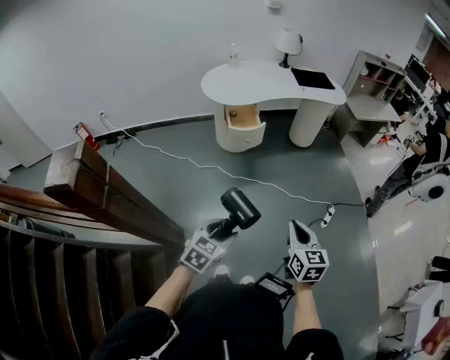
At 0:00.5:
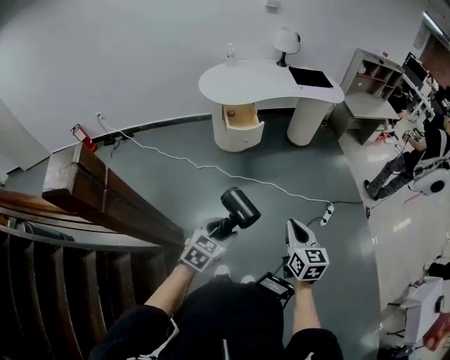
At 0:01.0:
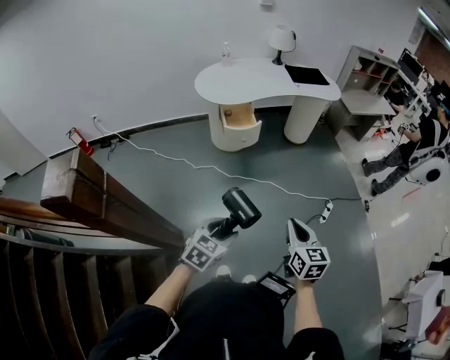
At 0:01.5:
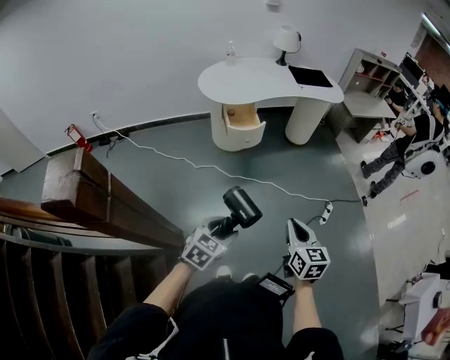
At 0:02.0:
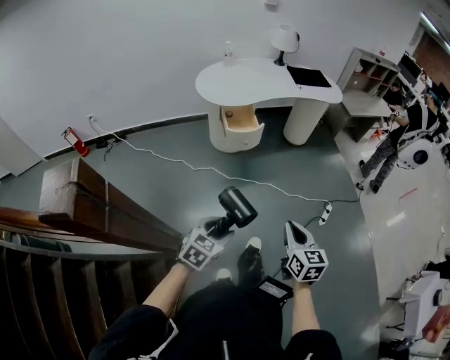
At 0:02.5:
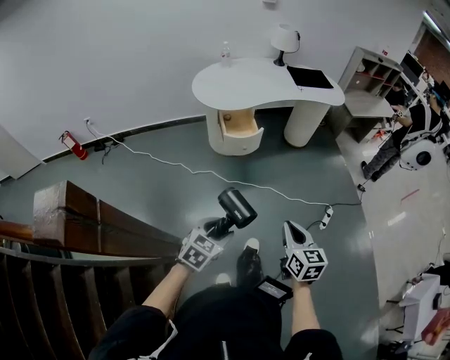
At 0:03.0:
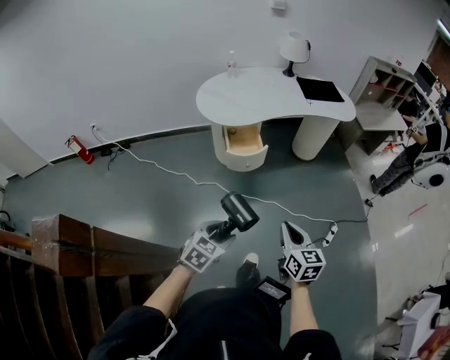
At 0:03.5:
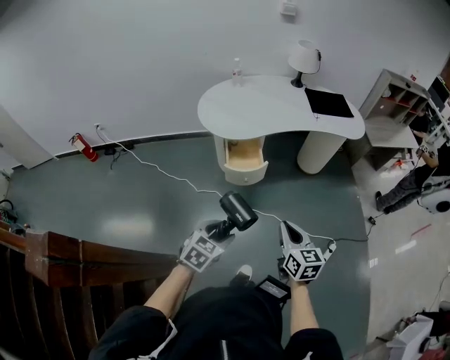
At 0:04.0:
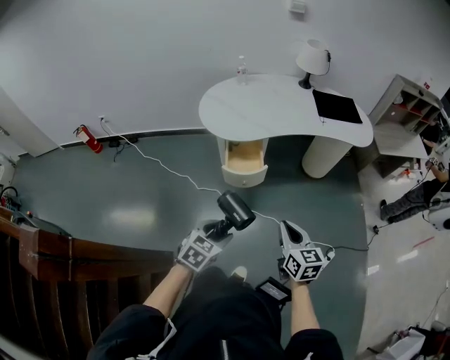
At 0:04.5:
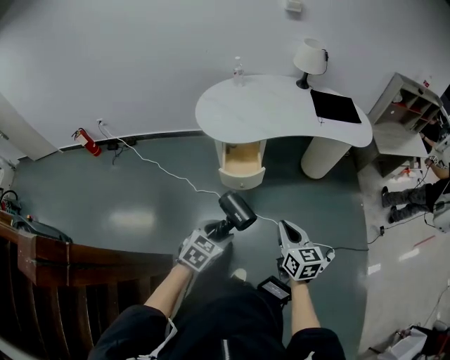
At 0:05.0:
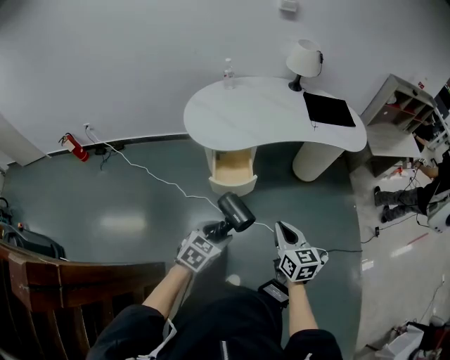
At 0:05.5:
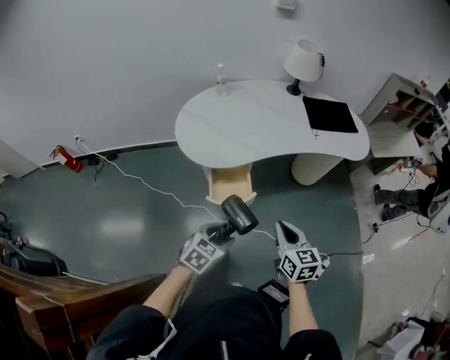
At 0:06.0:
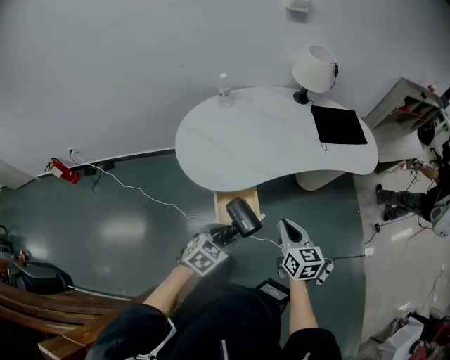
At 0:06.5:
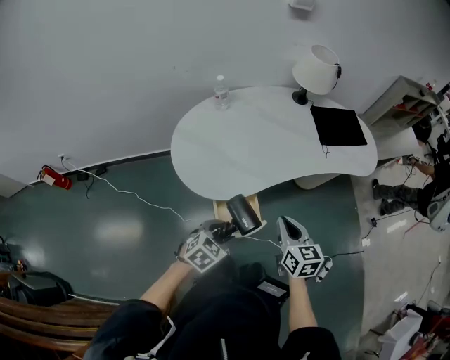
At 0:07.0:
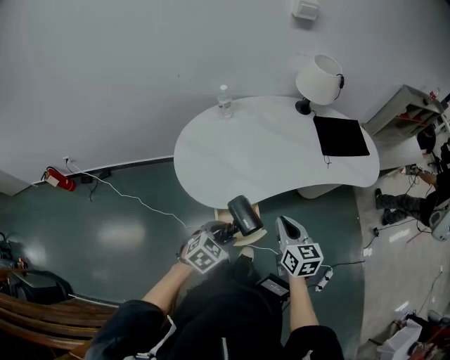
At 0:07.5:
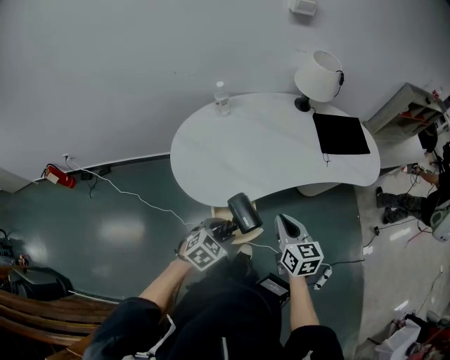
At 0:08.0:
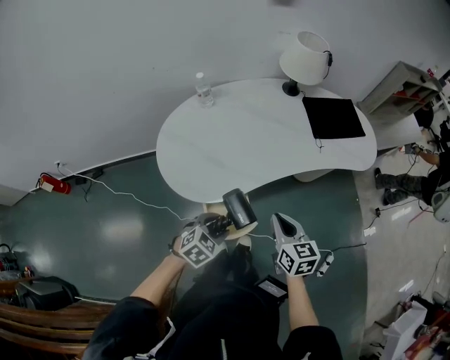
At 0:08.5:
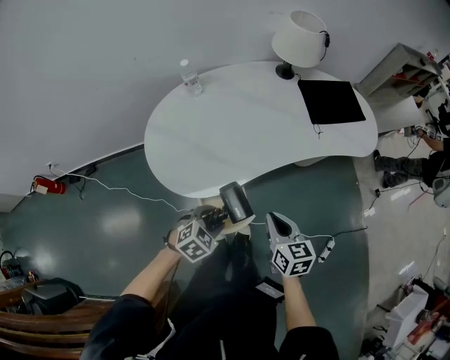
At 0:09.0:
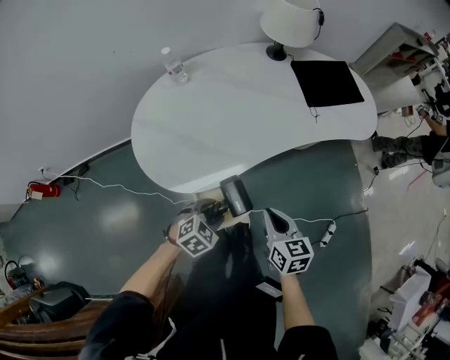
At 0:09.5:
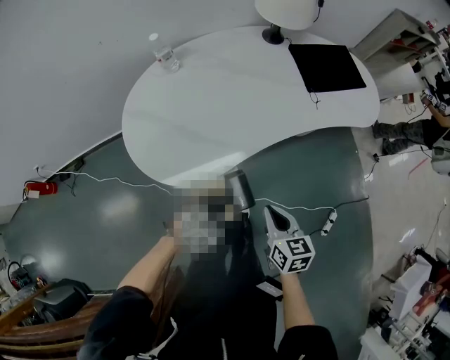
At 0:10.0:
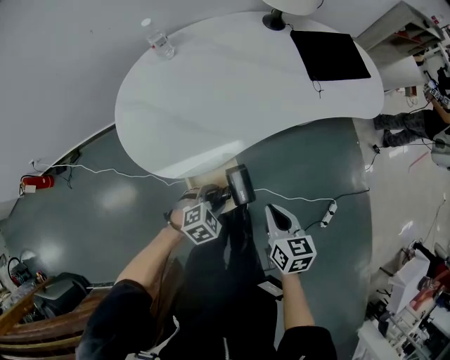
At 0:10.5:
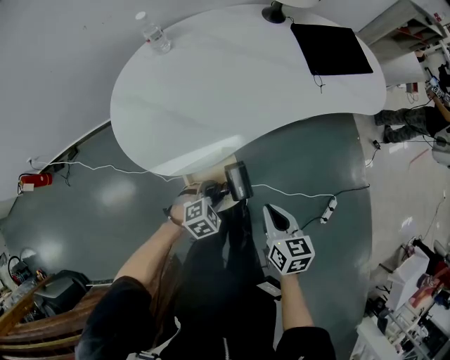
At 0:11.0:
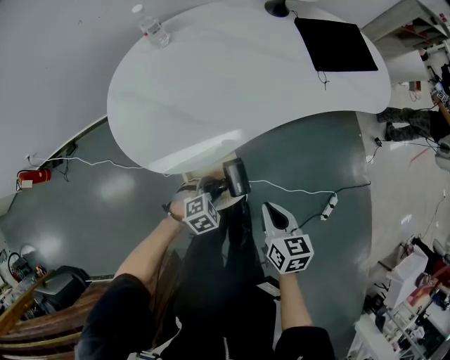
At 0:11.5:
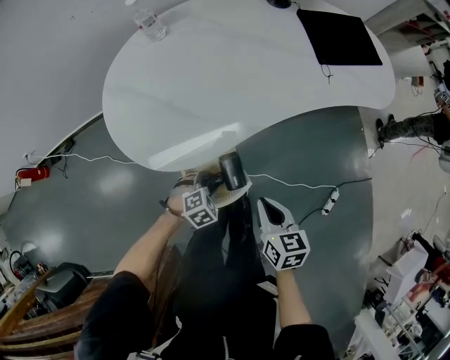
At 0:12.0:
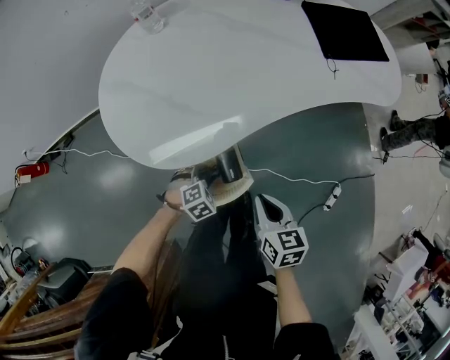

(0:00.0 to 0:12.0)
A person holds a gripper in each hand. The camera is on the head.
0:00.0 - 0:02.0: Both grippers move to the left, about 5 cm.
0:02.0 - 0:04.0: The two grippers go some 30 cm forward.
0:04.0 - 0:06.0: The two grippers go approximately 30 cm forward.
0:06.0 - 0:08.0: Both grippers travel together forward, roughly 10 cm.
0:08.0 - 0:10.0: The two grippers go about 10 cm downward.
0:10.0 - 0:12.0: The left gripper heads downward, covering some 10 cm; the right gripper travels downward by some 5 cm.

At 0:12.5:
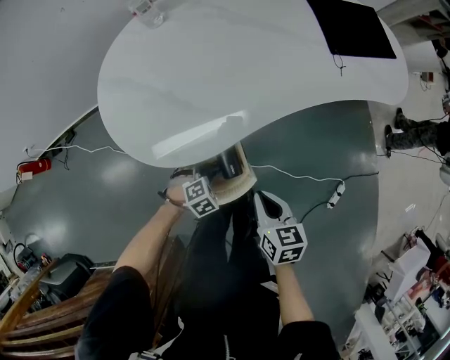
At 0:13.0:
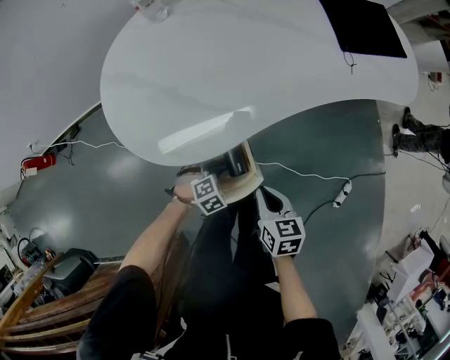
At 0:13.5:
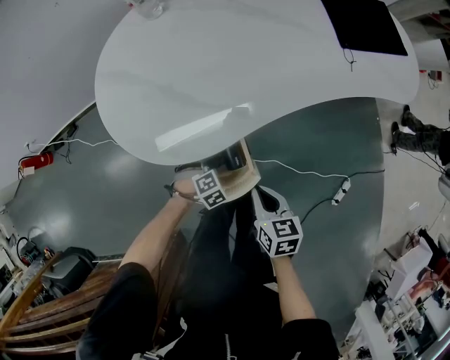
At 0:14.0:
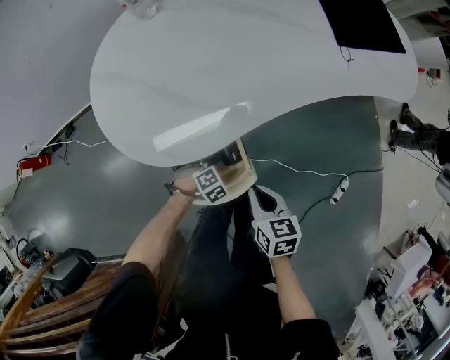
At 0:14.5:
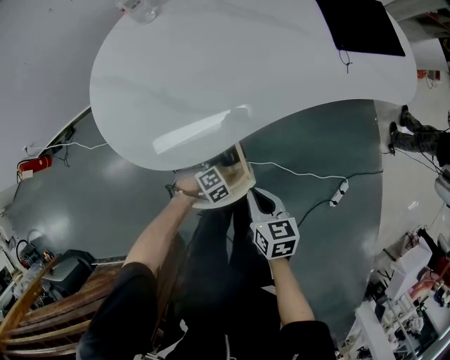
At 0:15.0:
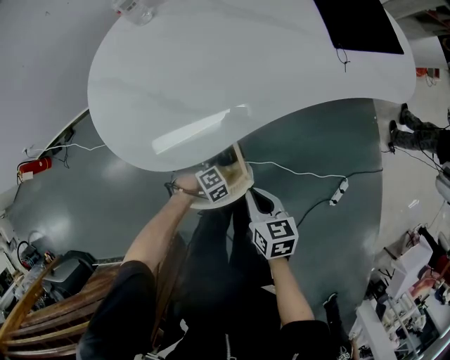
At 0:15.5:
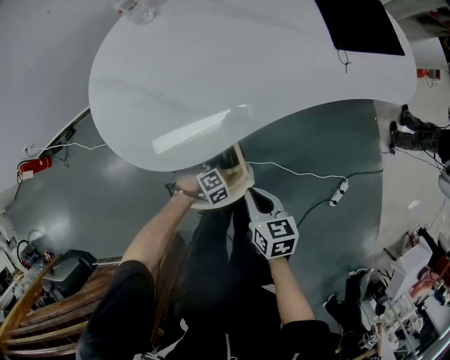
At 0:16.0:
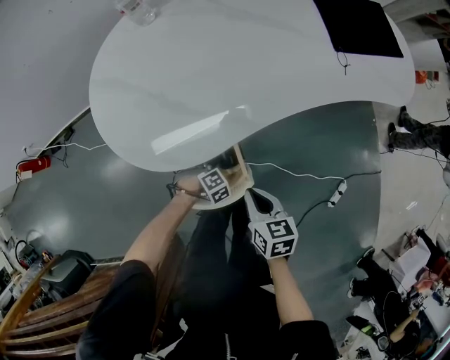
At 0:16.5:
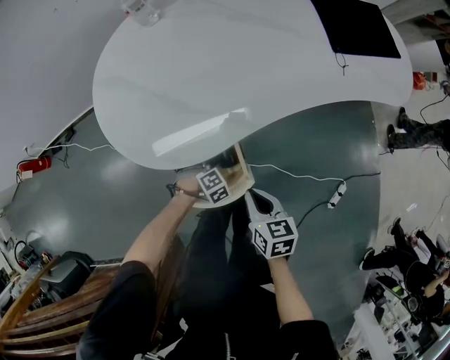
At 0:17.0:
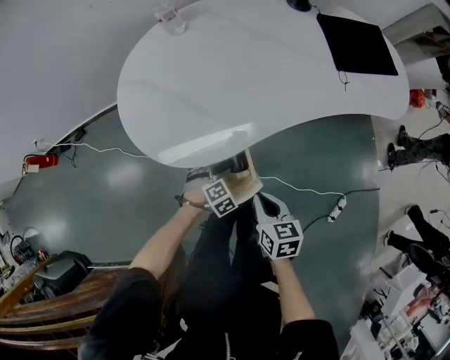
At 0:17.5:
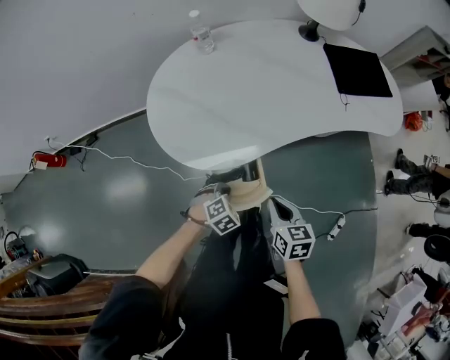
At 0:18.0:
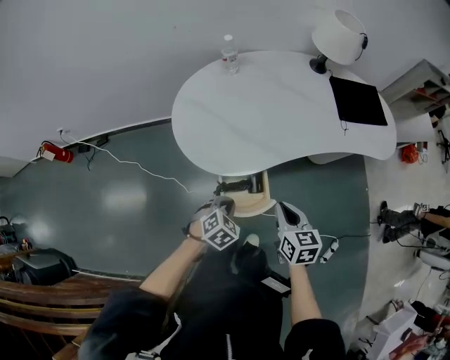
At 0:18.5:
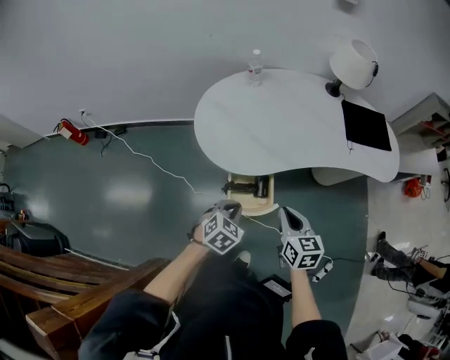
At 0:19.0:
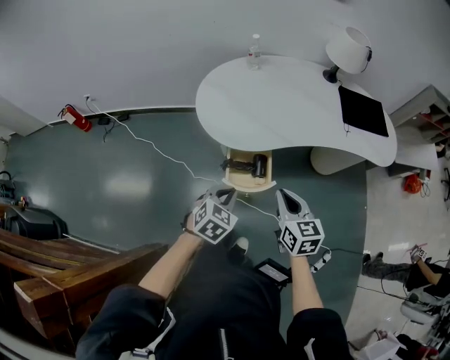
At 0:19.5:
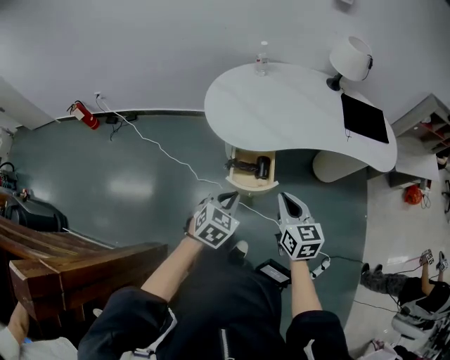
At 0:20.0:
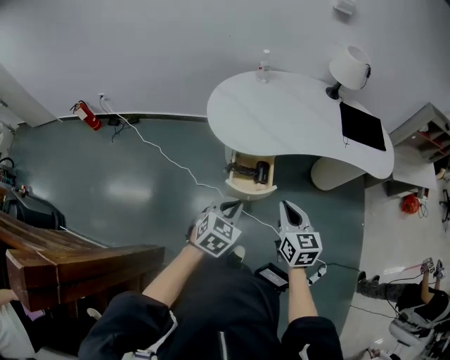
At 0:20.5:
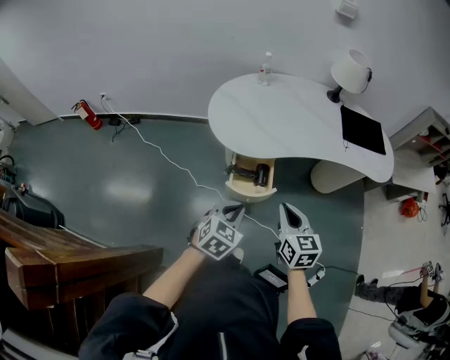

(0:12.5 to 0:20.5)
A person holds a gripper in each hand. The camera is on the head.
0:12.5 - 0:14.5: The left gripper goes approximately 5 cm downward.
0:14.5 - 0:16.5: The grippers stay close to where they were, moving slightly.
0:16.5 - 0:18.5: The right gripper is displaced upward by approximately 20 cm, and changes its angle by about 30 degrees, while the left gripper travels upward by some 35 cm, tips its fingers upward by about 30 degrees, and closes.
0:18.5 - 0:20.5: The right gripper heads backward, covering about 10 cm, while the left gripper travels backward and upward by some 15 cm.

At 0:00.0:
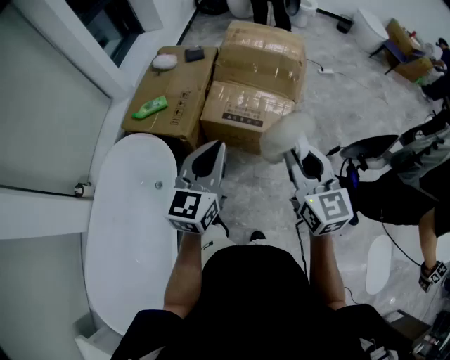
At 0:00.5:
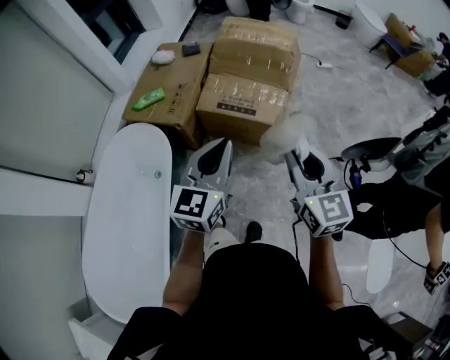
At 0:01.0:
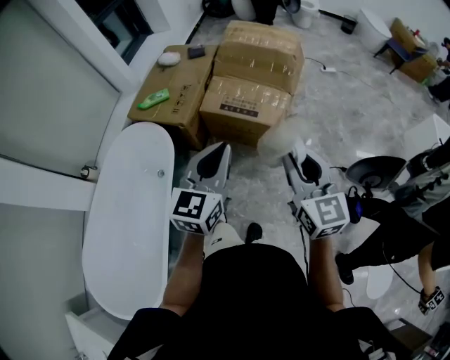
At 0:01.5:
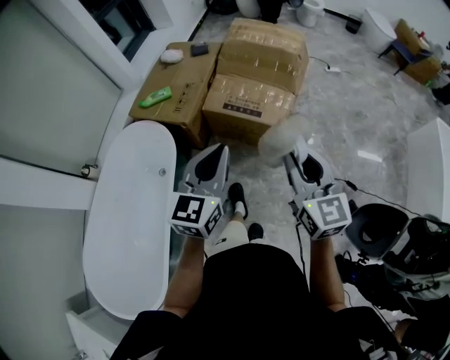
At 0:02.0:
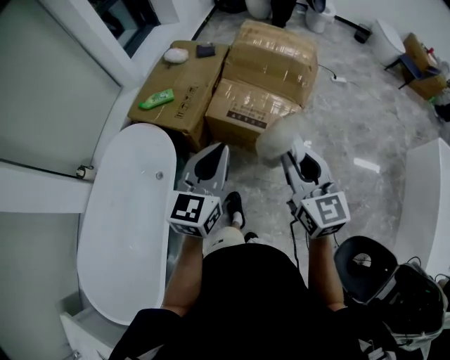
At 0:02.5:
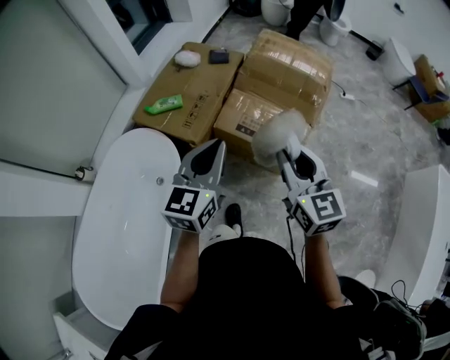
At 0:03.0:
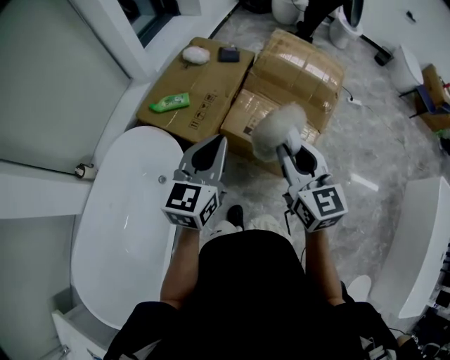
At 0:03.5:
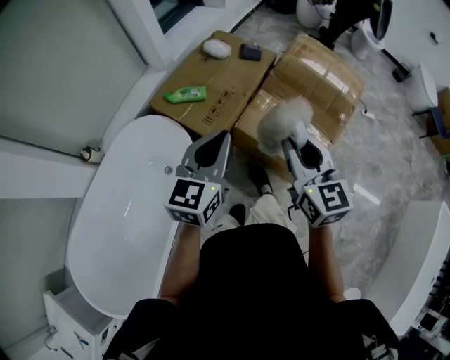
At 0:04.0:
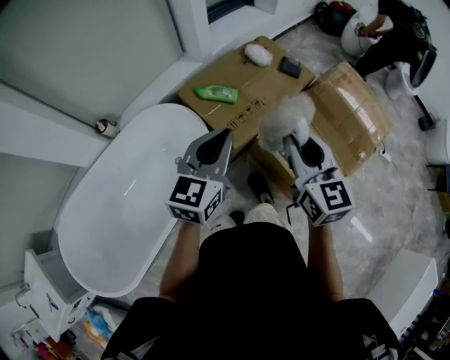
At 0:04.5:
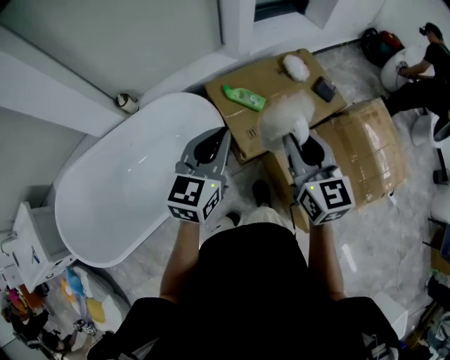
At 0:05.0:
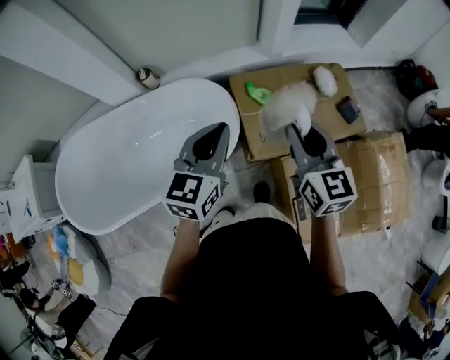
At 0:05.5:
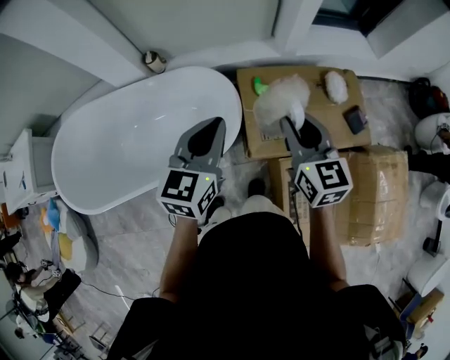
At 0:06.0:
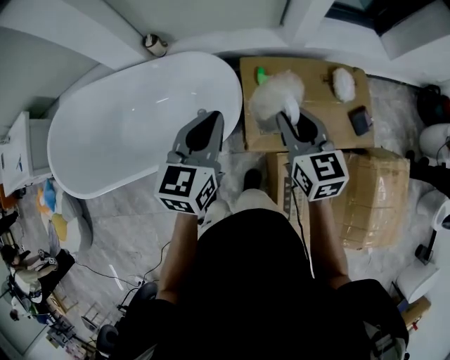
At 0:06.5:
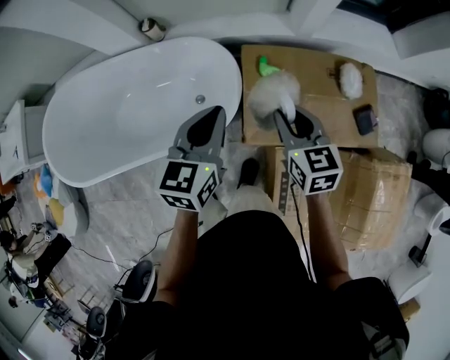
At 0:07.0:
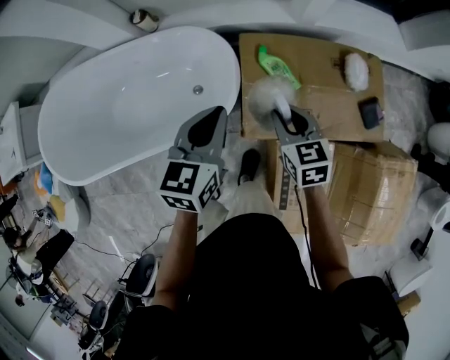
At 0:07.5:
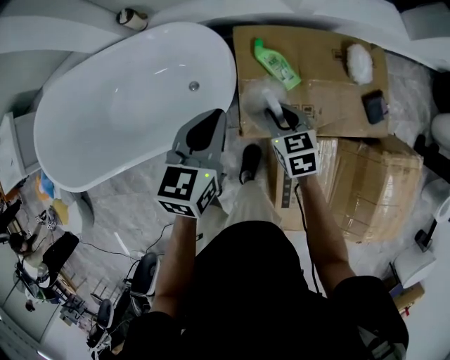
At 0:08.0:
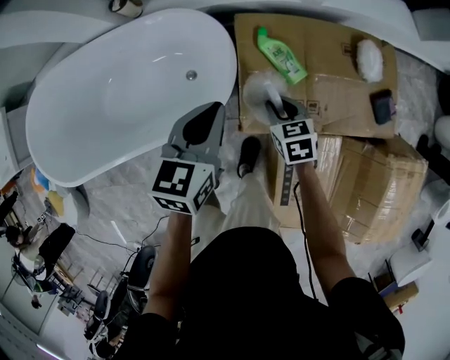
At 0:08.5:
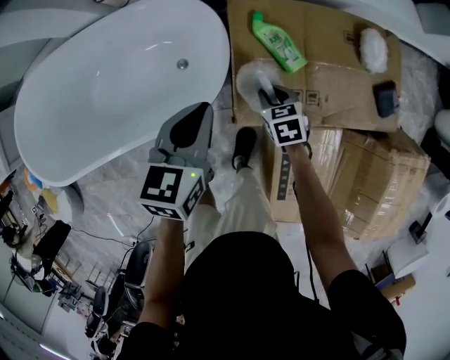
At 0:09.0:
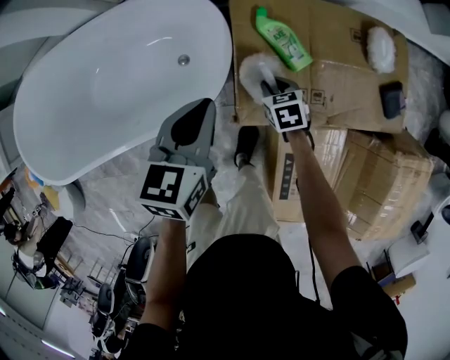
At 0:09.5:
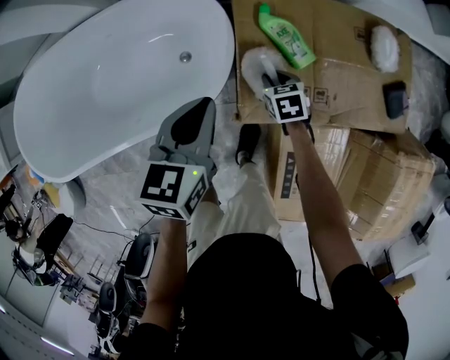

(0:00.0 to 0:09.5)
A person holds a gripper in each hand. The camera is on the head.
0:00.0 - 0:02.0: The left gripper reaches about 15 cm backward, then returns. The right gripper travels backward and back again, about 10 cm each way.
0:02.0 - 0:04.0: The left gripper shifts by about 30 cm, and turns by some 20 degrees; the right gripper moves roughly 40 cm, and turns by some 30 degrees.
0:04.0 - 0:05.5: The right gripper ends up about 25 cm from where it was, and rotates roughly 40 degrees, while the left gripper changes place by approximately 15 cm, and turns by some 40 degrees.
0:05.5 - 0:07.5: The right gripper heads downward, covering some 30 cm, and tilts its fingers about 30 degrees downward, while the left gripper goes some 15 cm downward.
0:07.5 - 0:09.5: The right gripper shifts about 20 cm downward, while the left gripper shifts about 10 cm downward.
